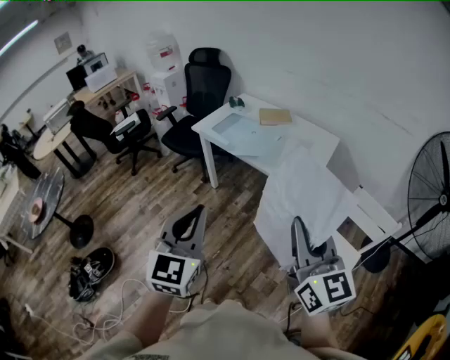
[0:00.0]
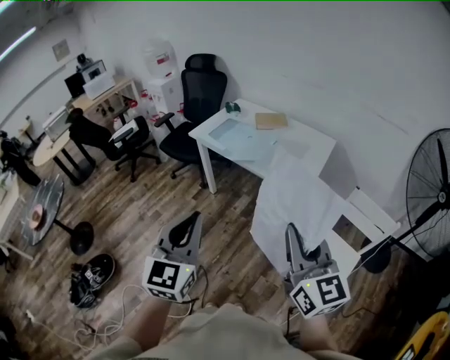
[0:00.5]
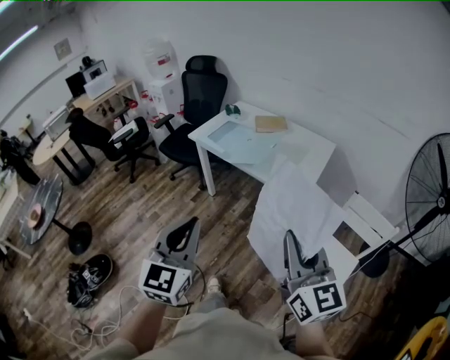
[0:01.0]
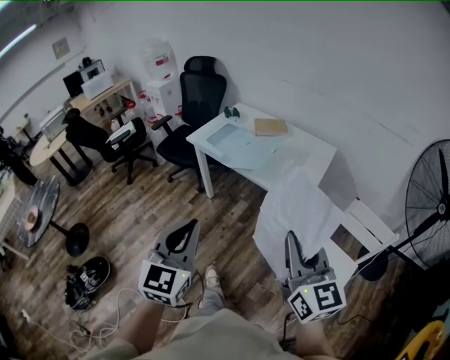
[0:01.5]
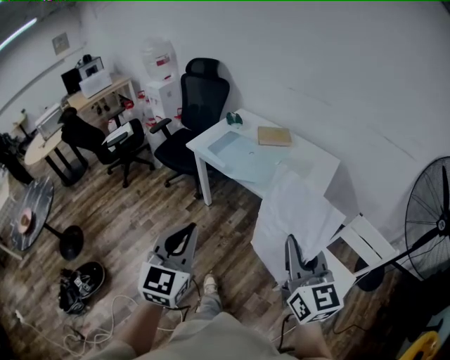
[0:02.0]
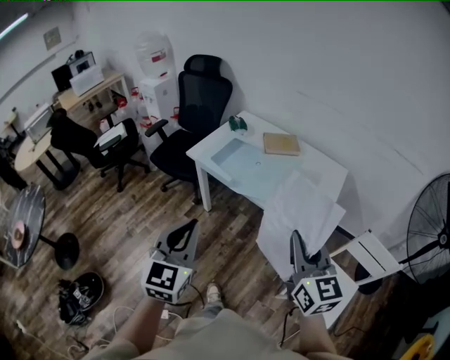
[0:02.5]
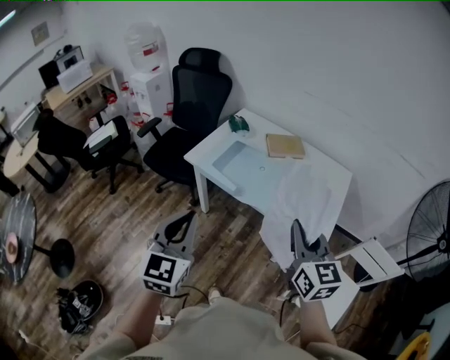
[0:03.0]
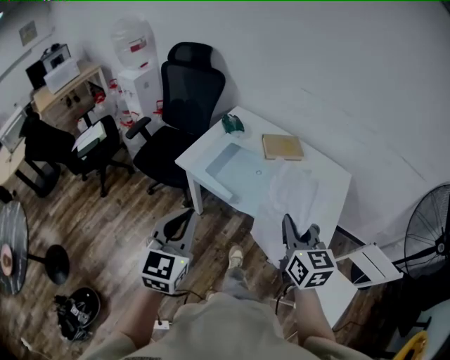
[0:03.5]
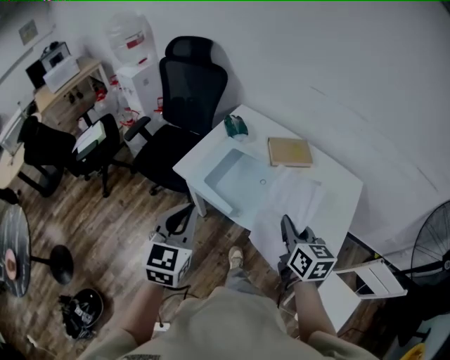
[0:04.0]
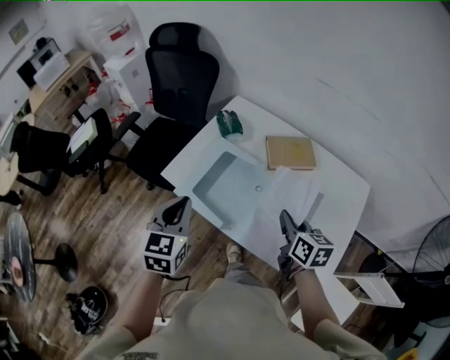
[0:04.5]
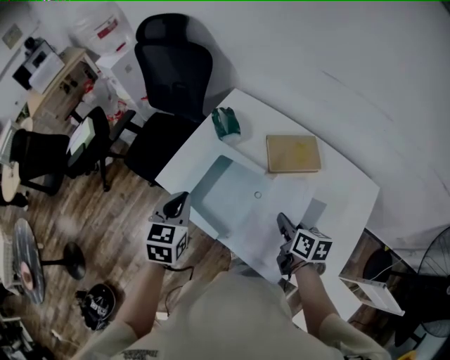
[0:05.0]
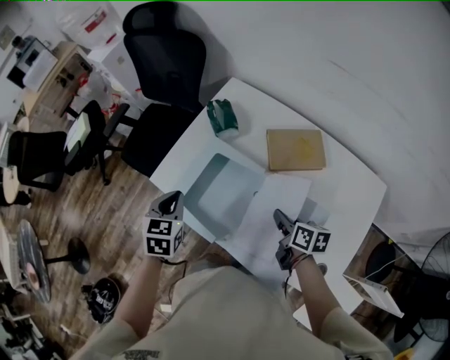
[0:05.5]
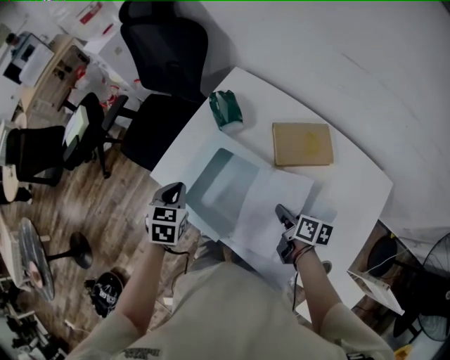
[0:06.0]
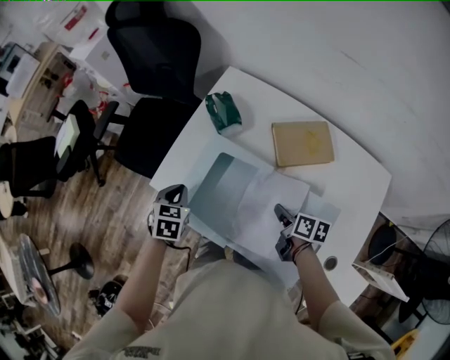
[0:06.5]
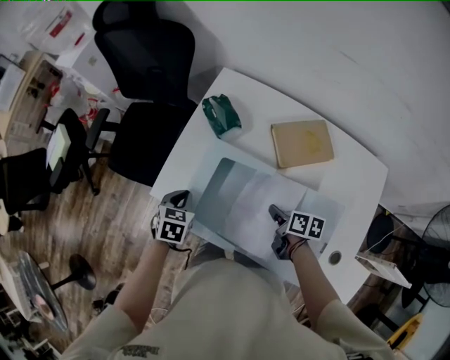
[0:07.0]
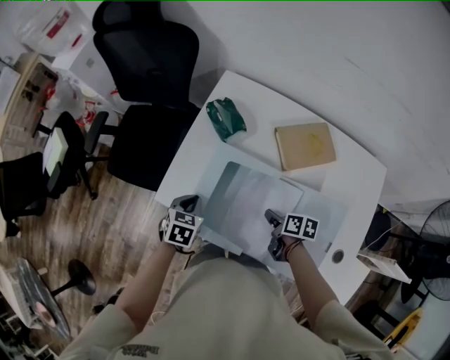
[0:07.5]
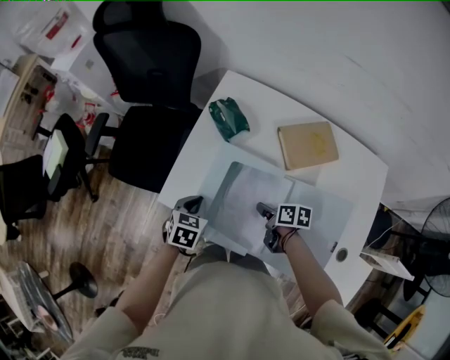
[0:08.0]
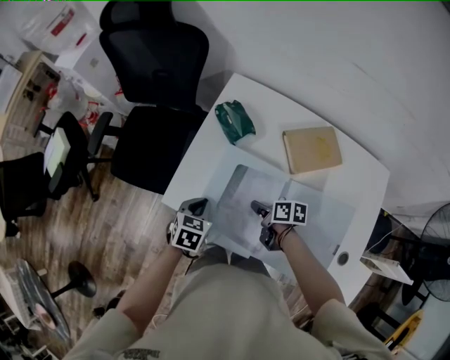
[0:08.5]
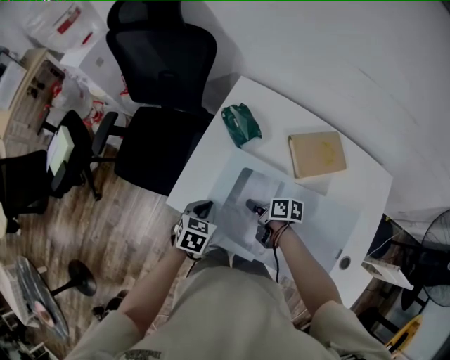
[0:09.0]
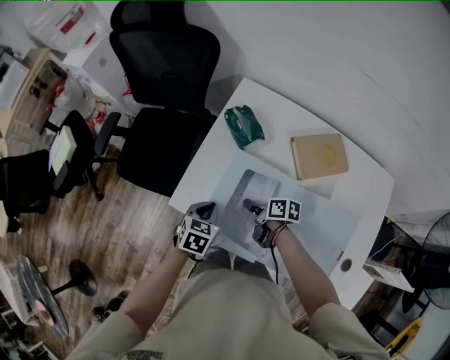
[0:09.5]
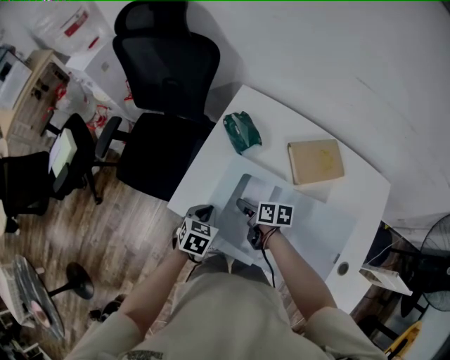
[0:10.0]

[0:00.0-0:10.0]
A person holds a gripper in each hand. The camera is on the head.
0:00.0 to 0:02.0: The grippers both shift forward by roughly 10 cm.
0:02.0 to 0:04.0: Both grippers are carried forward, about 50 cm. The right gripper rotates about 30 degrees.
0:04.0 to 0:06.0: The left gripper moves forward and downward, some 35 cm, and tilts its fingers approximately 30 degrees downward. The right gripper moves downward and forward, about 30 cm, and changes its angle by roughly 40 degrees.
0:06.0 to 0:08.0: The right gripper heads to the left, downward and forward, covering roughly 15 cm, while the left gripper travels downward by approximately 10 cm, and turns by some 20 degrees.
0:08.0 to 0:10.0: The right gripper is displaced to the left and forward by approximately 10 cm, and opens its fingers.

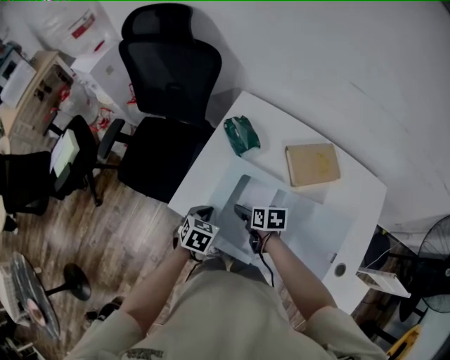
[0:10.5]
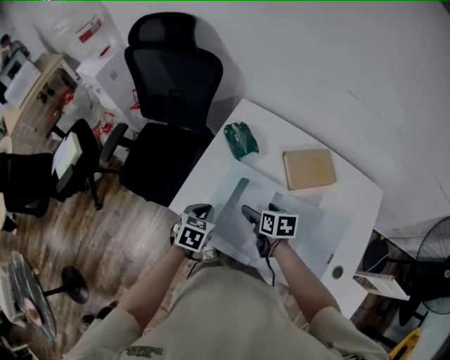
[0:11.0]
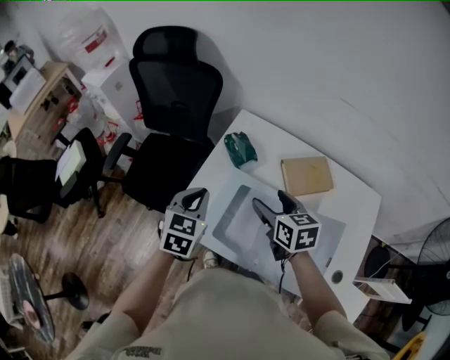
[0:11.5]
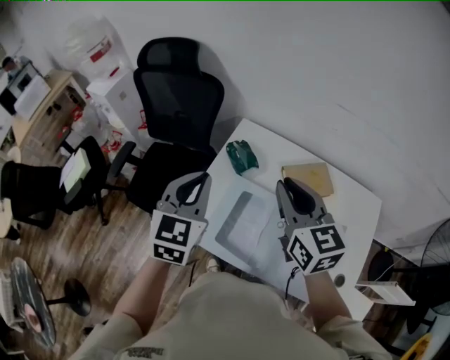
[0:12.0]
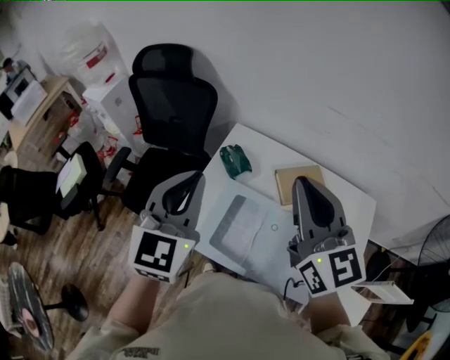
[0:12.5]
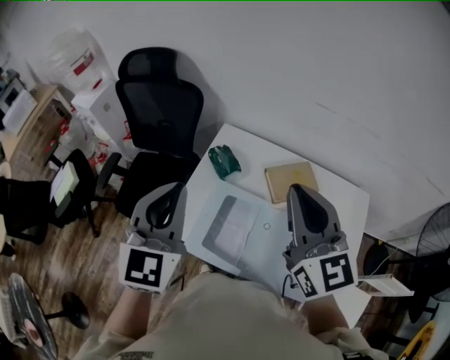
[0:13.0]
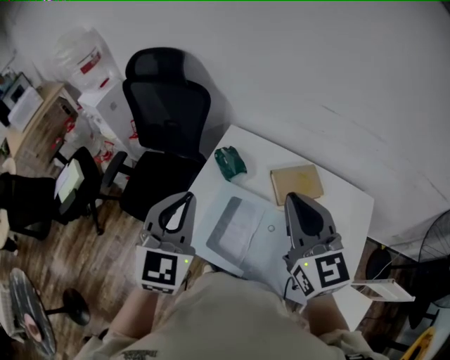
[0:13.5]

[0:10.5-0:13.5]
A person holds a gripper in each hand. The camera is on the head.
0:10.5 to 0:12.0: The grippers both shift upward by about 35 cm. The right gripper tips its fingers upward by roughly 40 degrees, and closes. The left gripper angles its fingers upward, by some 40 degrees.
0:12.0 to 0:13.5: The right gripper is displaced upward by roughly 5 cm. Meanwhile the left gripper moves some 5 cm.

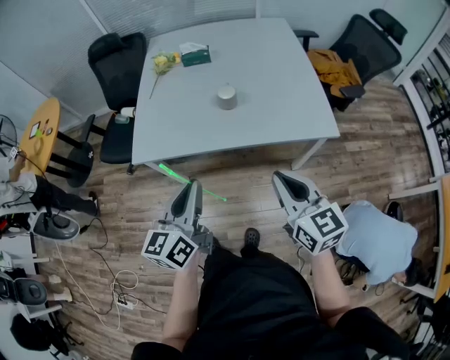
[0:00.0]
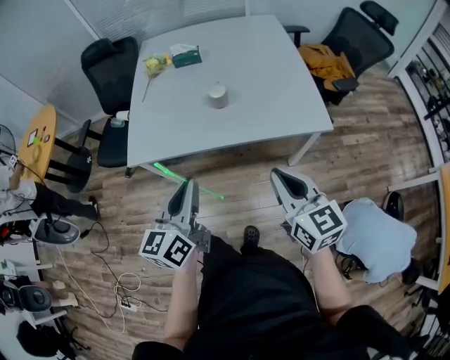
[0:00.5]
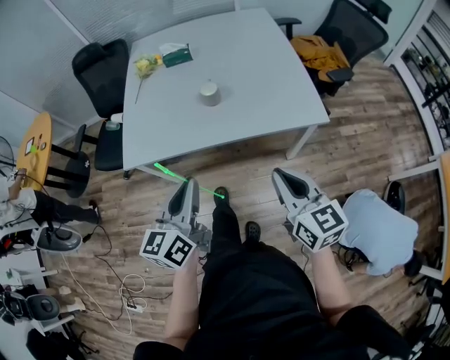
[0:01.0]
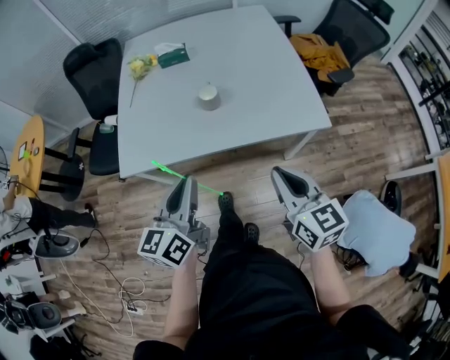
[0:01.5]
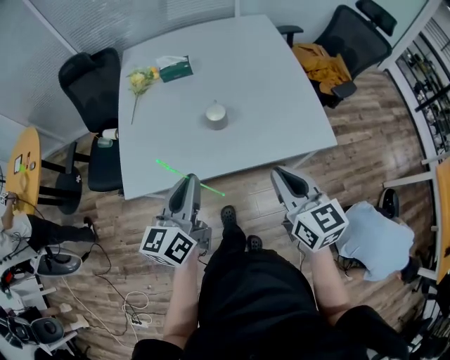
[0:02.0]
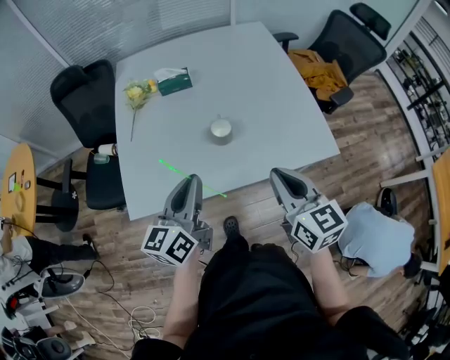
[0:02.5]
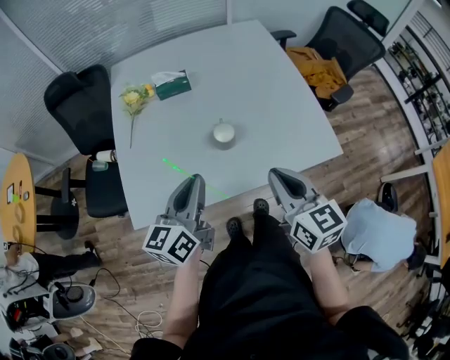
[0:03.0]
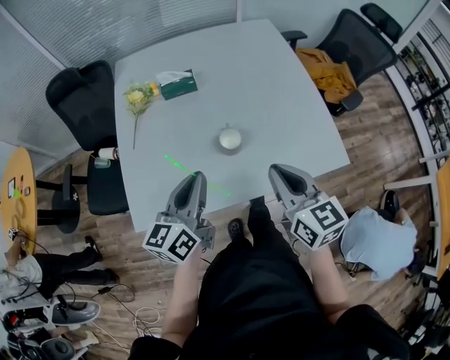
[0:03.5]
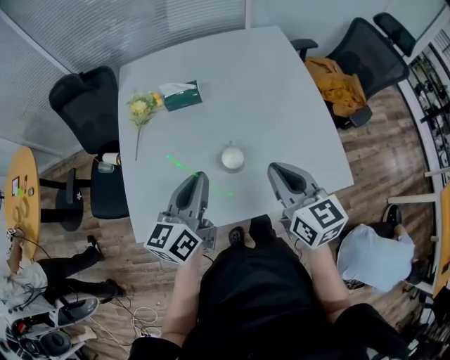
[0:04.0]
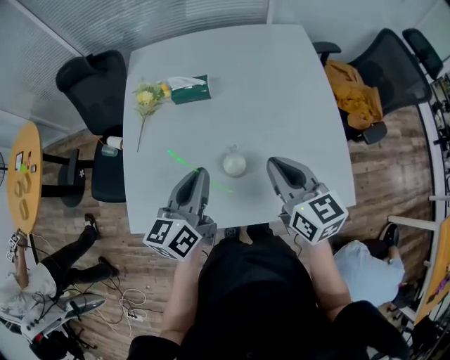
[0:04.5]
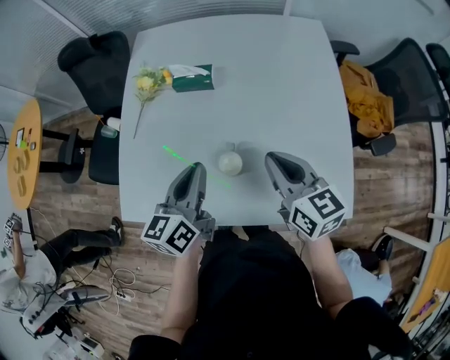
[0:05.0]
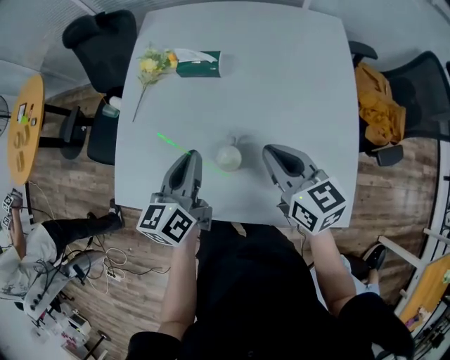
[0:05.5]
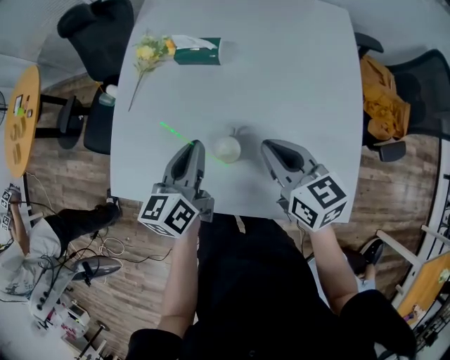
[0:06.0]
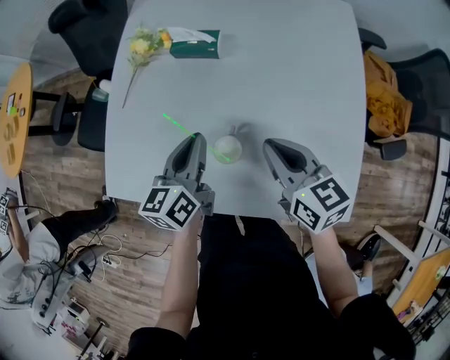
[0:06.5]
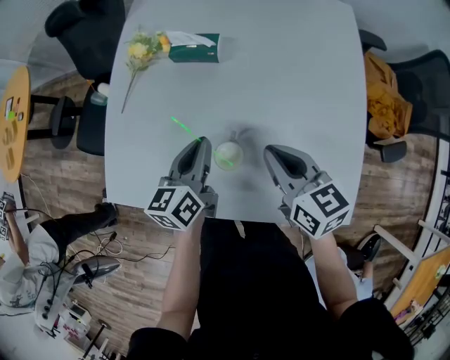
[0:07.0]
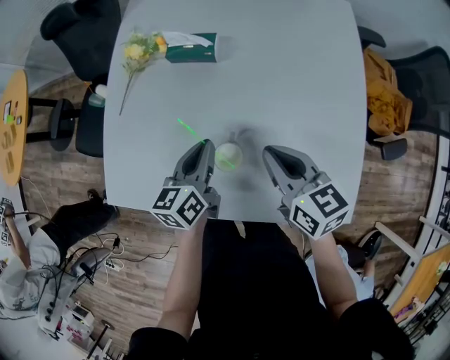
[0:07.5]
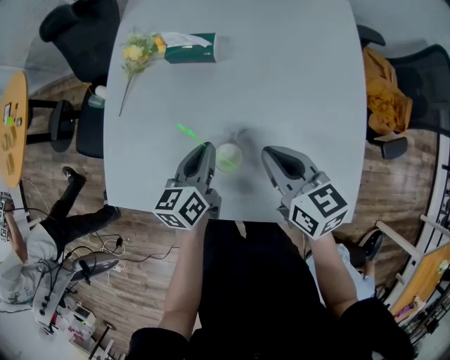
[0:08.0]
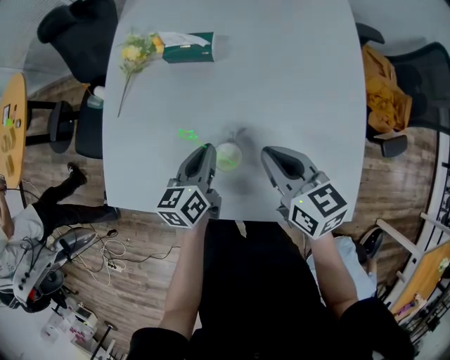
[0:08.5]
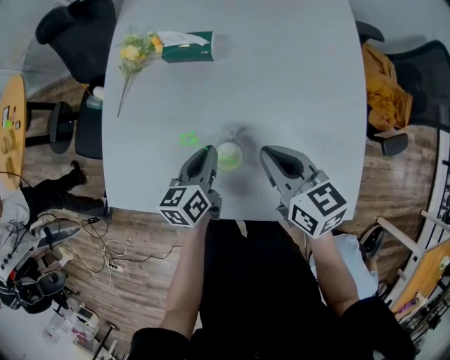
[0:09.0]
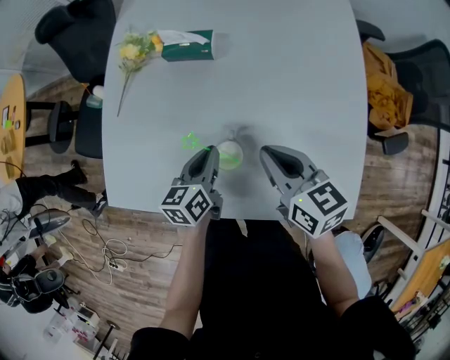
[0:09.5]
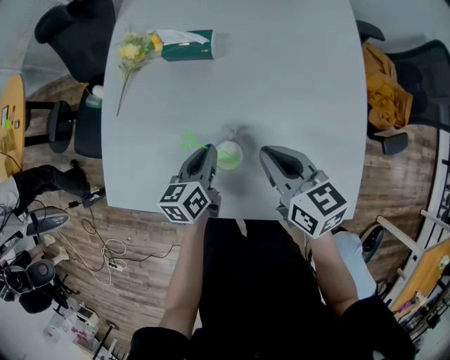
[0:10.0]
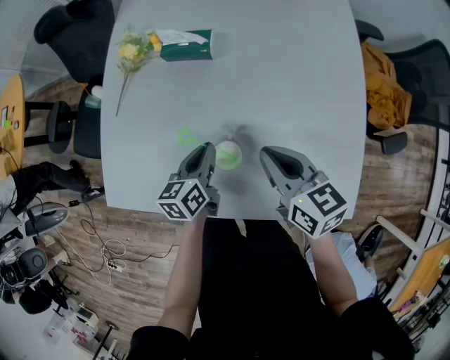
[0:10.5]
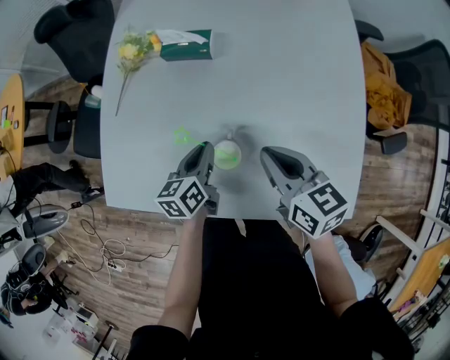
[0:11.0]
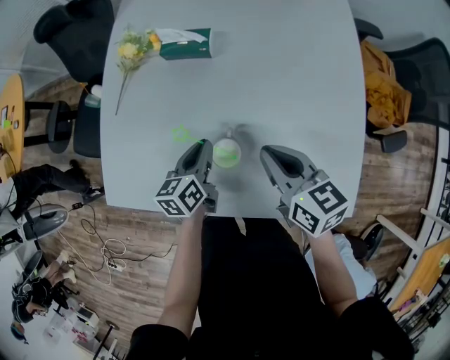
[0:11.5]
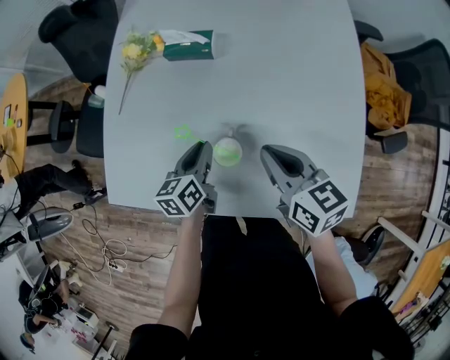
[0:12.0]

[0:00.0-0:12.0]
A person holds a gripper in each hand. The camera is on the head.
0:00.0 to 0:02.0: Both grippers move forward, about 15 cm.
0:02.0 to 0:04.0: Both grippers travel together forward, about 20 cm.
0:04.0 to 0:06.0: The right gripper shifts about 15 cm forward and downward, and turns by approximately 30 degrees, while the left gripper moves downward and forward, roughly 10 cm, and rotates about 20 degrees.
0:06.0 to 0:08.0: The left gripper moves downward, roughly 10 cm.
0:08.0 to 0:12.0: The grippers make only small movements.

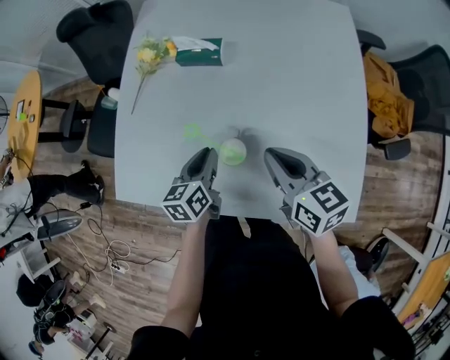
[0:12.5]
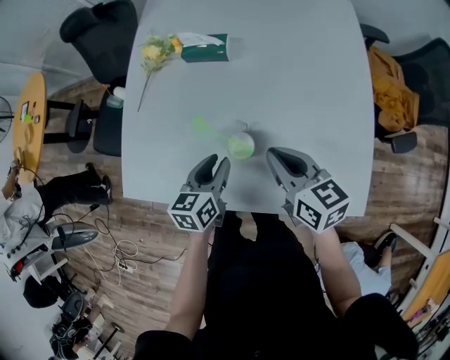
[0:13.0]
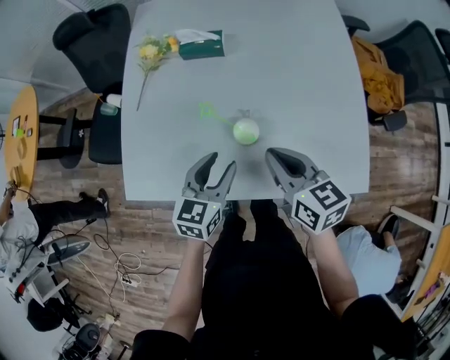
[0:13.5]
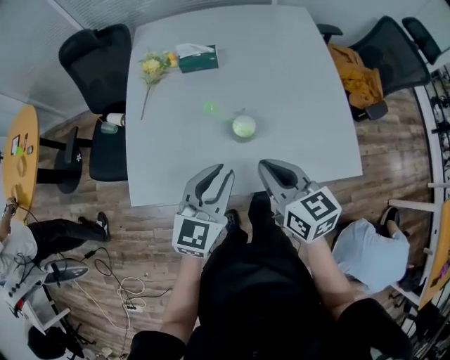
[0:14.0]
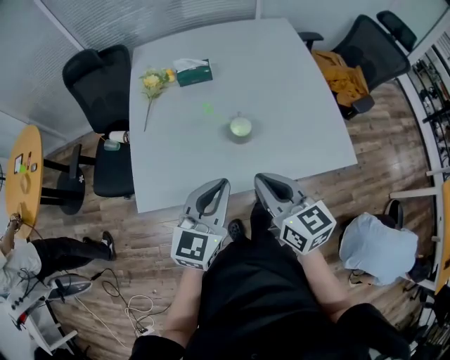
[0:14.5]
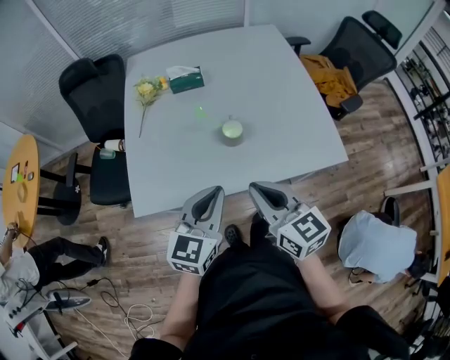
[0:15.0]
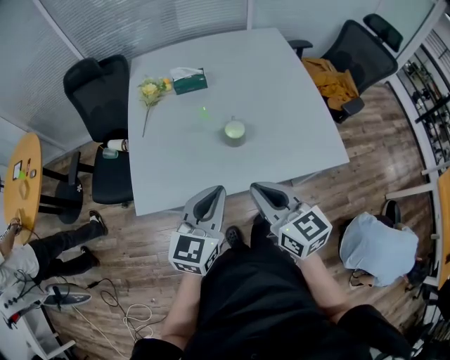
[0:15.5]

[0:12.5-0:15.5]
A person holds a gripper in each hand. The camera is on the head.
0:12.5 to 0:14.0: The left gripper travels backward and upward by some 20 cm, changes its angle by roughly 50 degrees, and opens and closes again, while the right gripper moves backward and to the left, some 15 cm.
0:14.0 to 0:15.5: The grippers both shift backward by about 10 cm.
